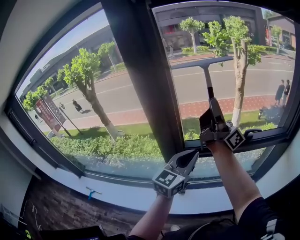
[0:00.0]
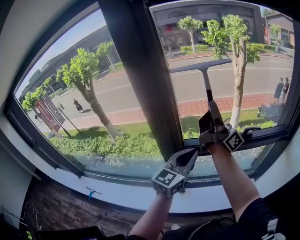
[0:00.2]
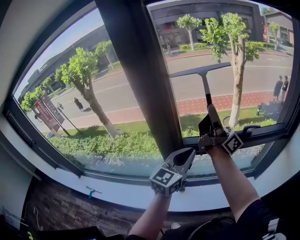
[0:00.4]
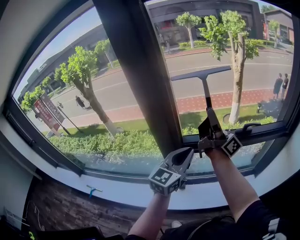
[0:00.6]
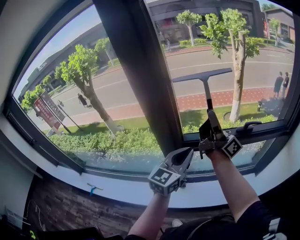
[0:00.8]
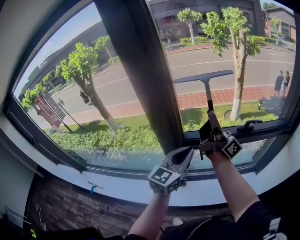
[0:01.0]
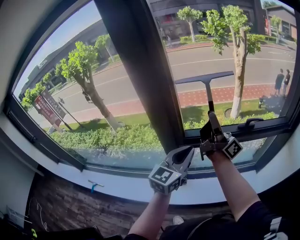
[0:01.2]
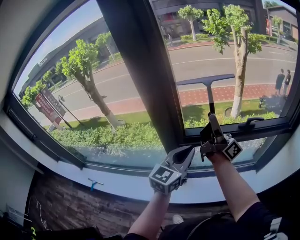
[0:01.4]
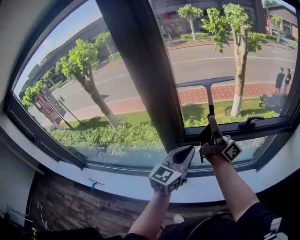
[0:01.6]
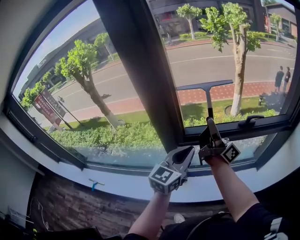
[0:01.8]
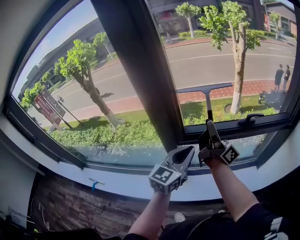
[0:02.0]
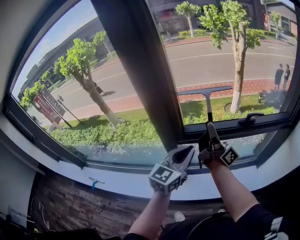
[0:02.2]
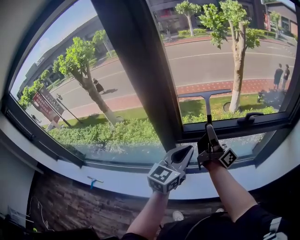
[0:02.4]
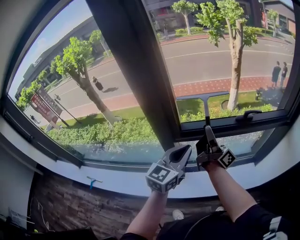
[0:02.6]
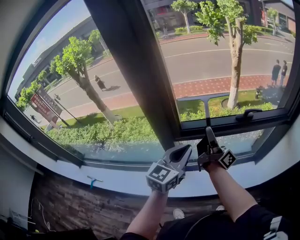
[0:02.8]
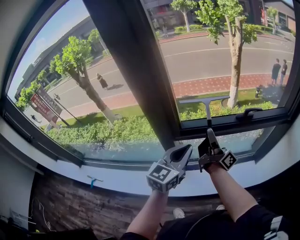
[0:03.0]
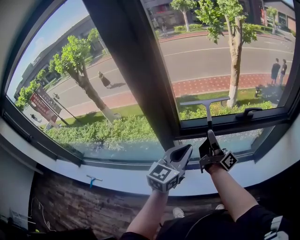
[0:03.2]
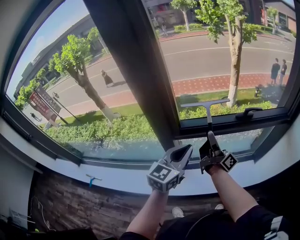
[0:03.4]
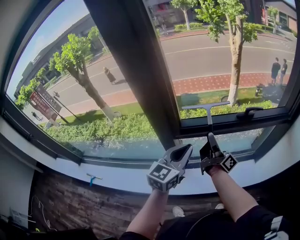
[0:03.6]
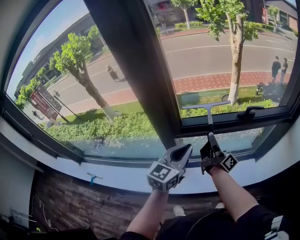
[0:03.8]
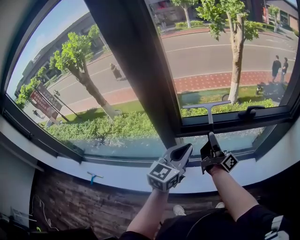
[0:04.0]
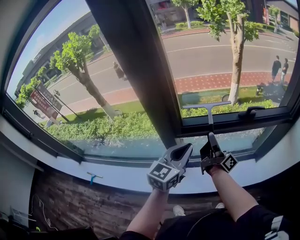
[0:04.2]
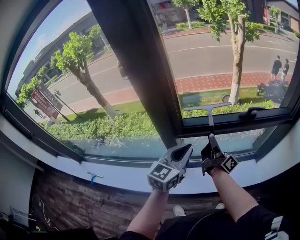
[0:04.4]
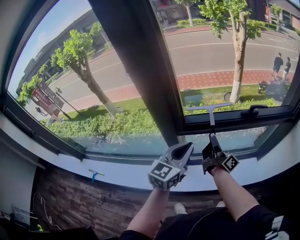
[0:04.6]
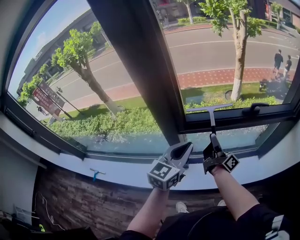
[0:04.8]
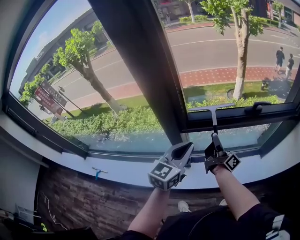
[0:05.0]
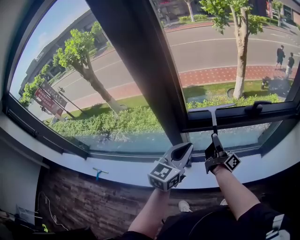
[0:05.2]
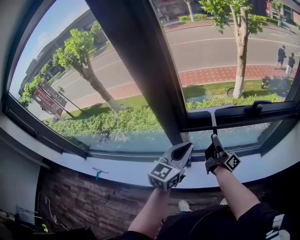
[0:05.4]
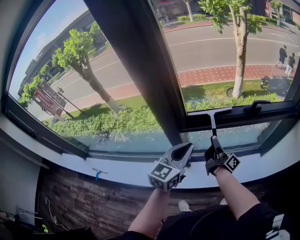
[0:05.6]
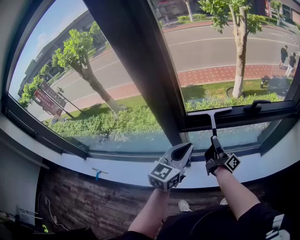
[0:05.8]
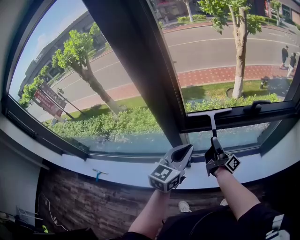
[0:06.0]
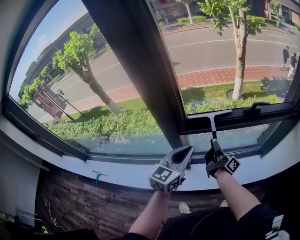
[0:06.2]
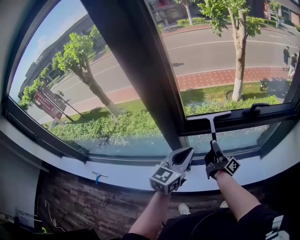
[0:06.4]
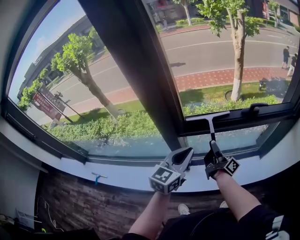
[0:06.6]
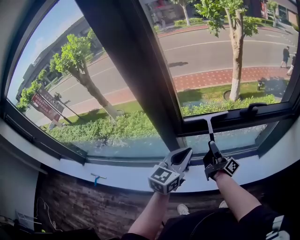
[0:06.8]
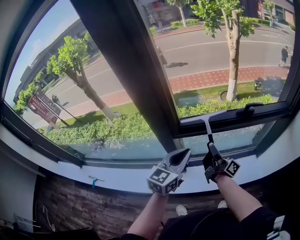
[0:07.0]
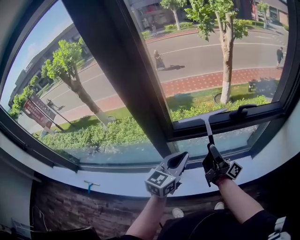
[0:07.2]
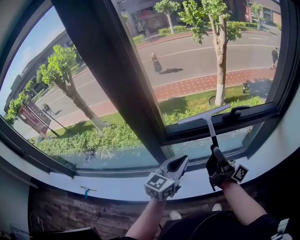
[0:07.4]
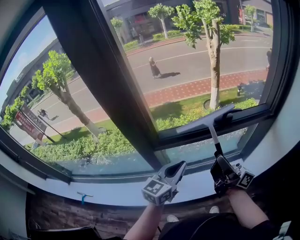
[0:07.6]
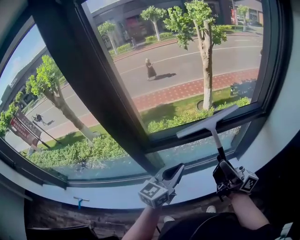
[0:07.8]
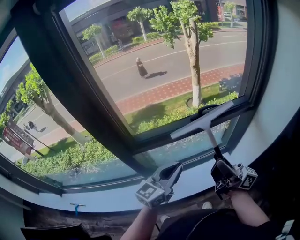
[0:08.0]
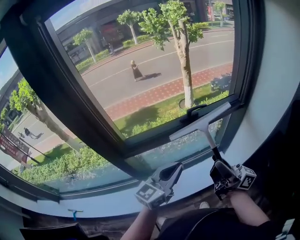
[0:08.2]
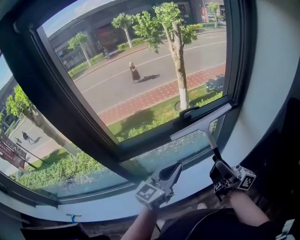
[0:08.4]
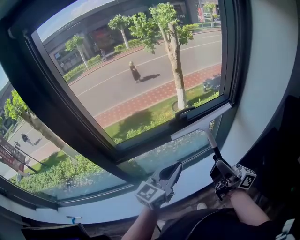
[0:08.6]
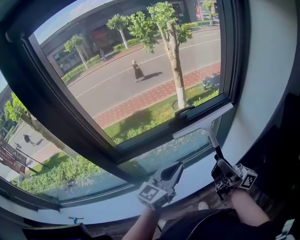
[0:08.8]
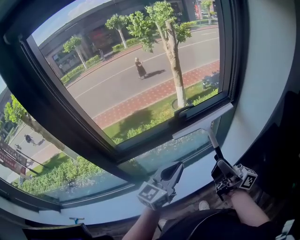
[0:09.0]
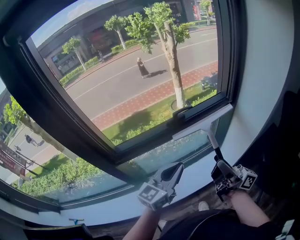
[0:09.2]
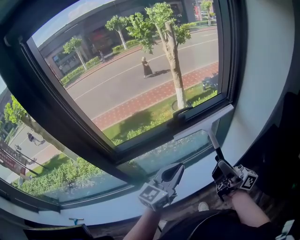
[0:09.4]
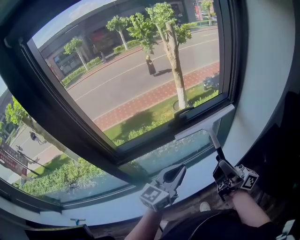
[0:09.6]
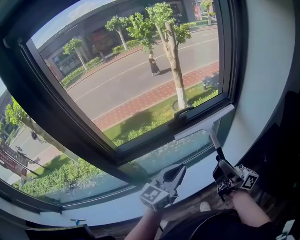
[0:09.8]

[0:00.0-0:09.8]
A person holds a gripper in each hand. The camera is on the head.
0:07.0 to 0:08.4: The left gripper shifts by approximately 20 cm, and swivels about 30 degrees.

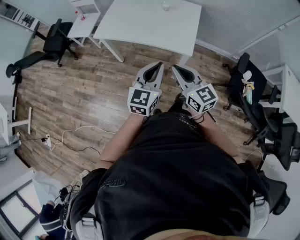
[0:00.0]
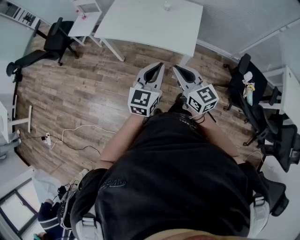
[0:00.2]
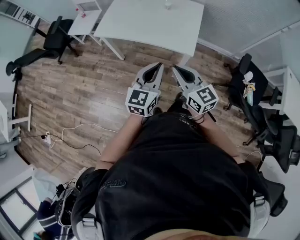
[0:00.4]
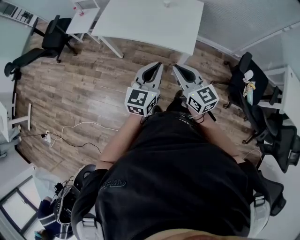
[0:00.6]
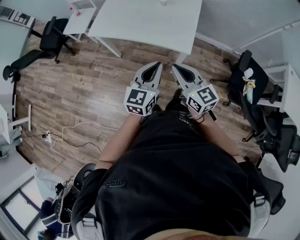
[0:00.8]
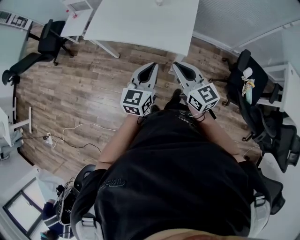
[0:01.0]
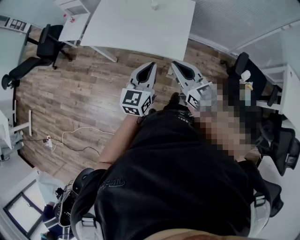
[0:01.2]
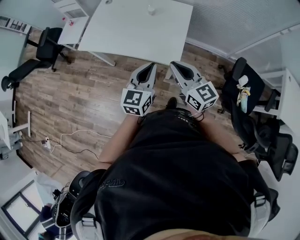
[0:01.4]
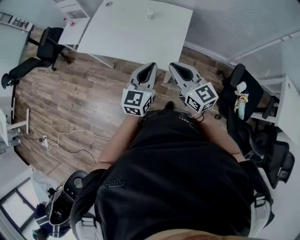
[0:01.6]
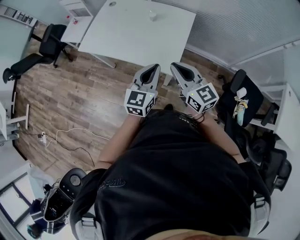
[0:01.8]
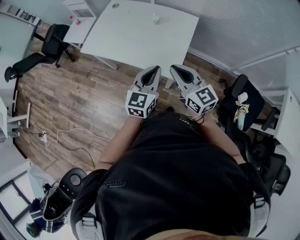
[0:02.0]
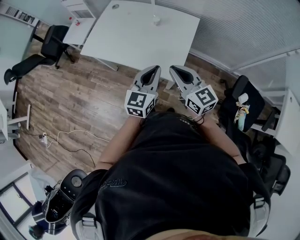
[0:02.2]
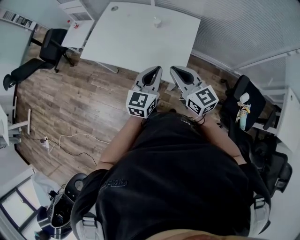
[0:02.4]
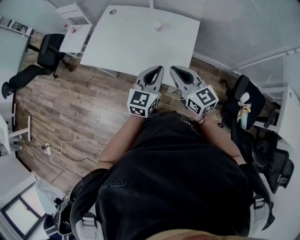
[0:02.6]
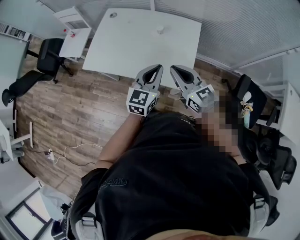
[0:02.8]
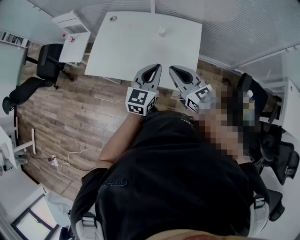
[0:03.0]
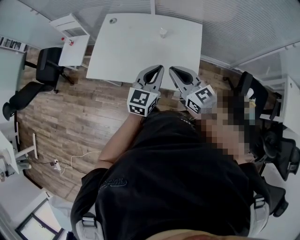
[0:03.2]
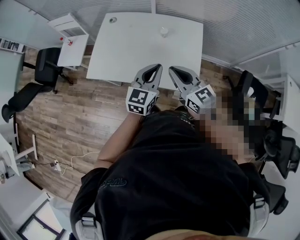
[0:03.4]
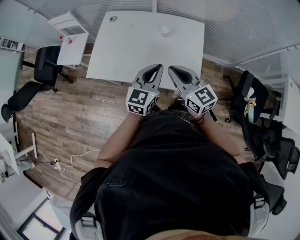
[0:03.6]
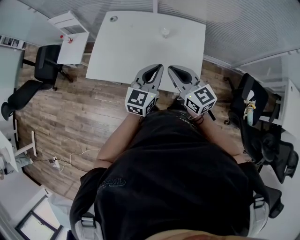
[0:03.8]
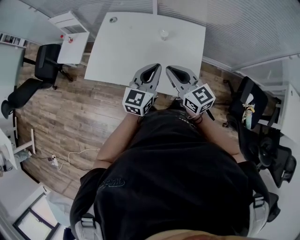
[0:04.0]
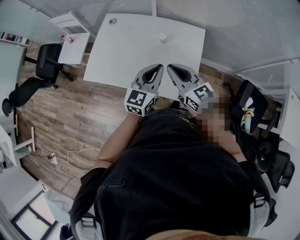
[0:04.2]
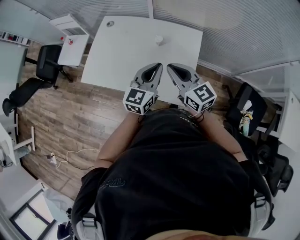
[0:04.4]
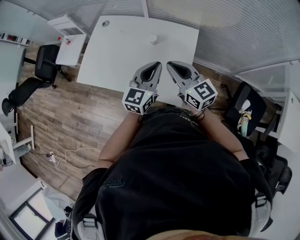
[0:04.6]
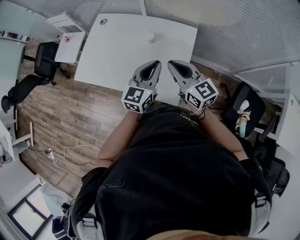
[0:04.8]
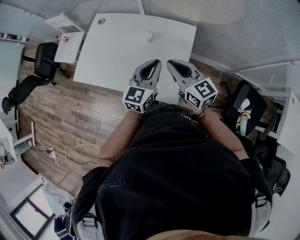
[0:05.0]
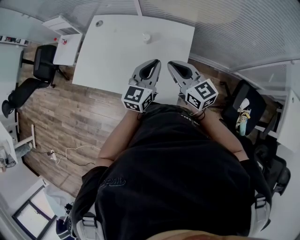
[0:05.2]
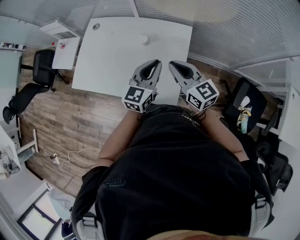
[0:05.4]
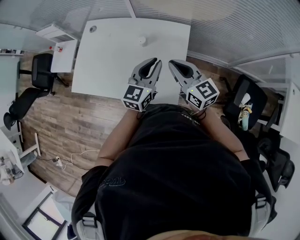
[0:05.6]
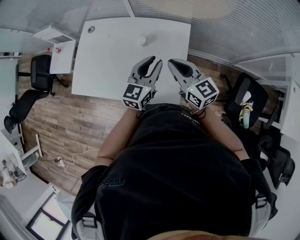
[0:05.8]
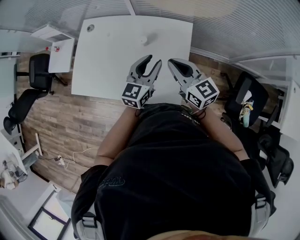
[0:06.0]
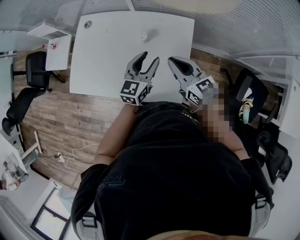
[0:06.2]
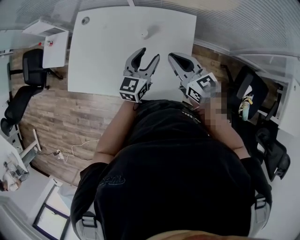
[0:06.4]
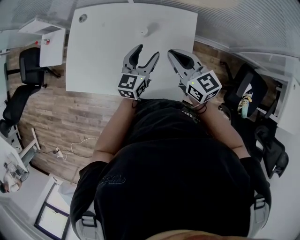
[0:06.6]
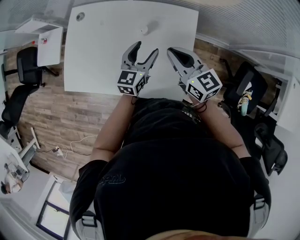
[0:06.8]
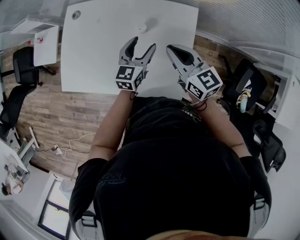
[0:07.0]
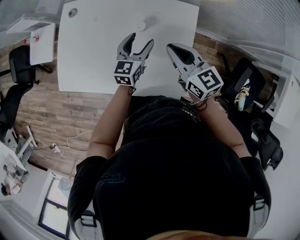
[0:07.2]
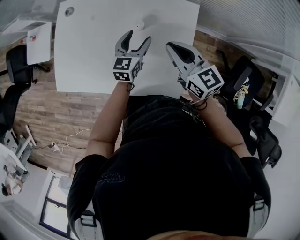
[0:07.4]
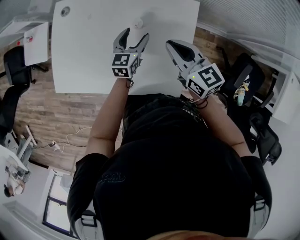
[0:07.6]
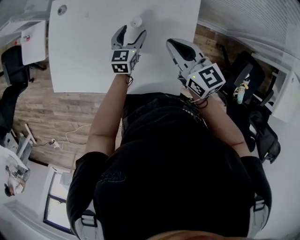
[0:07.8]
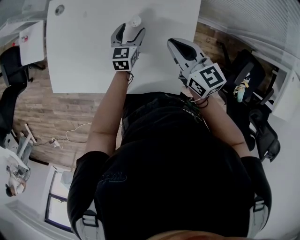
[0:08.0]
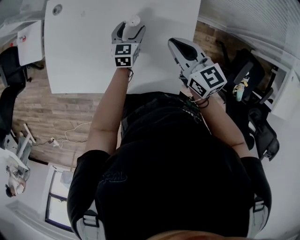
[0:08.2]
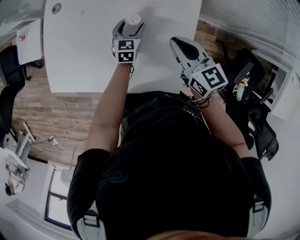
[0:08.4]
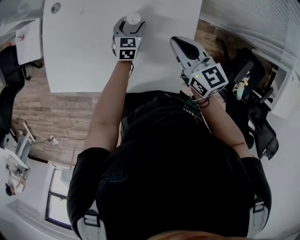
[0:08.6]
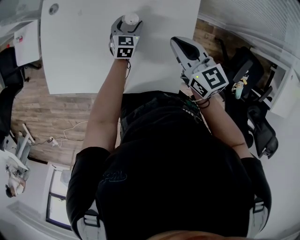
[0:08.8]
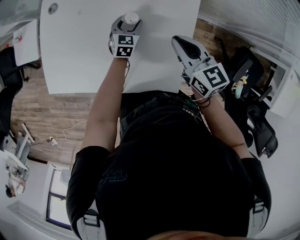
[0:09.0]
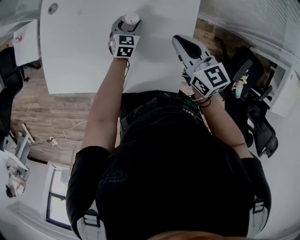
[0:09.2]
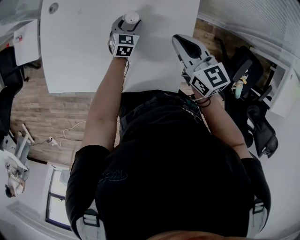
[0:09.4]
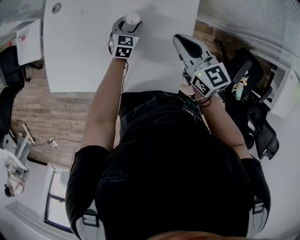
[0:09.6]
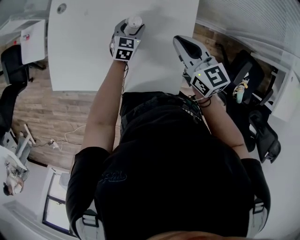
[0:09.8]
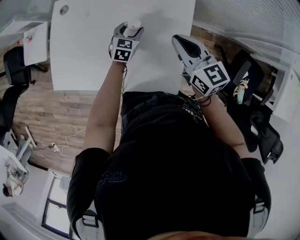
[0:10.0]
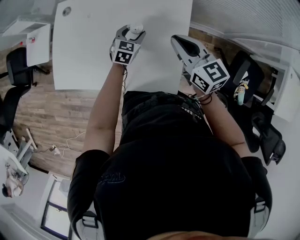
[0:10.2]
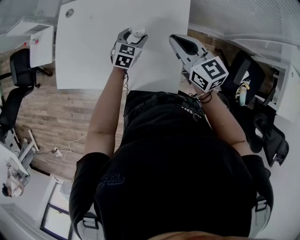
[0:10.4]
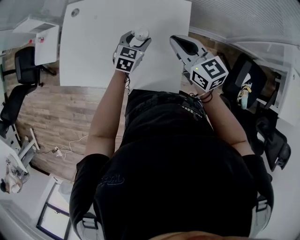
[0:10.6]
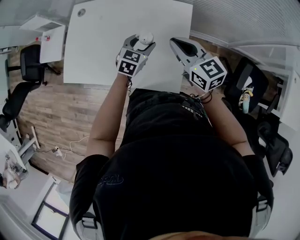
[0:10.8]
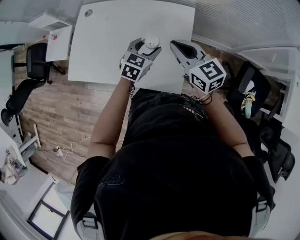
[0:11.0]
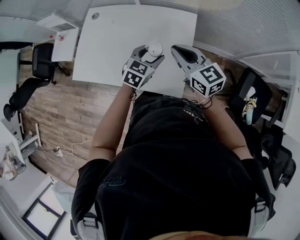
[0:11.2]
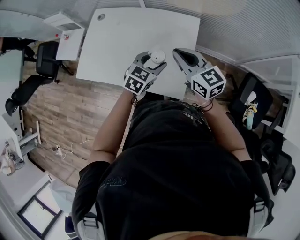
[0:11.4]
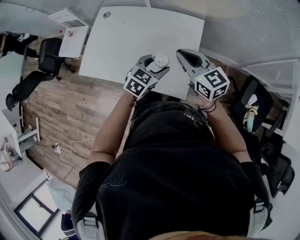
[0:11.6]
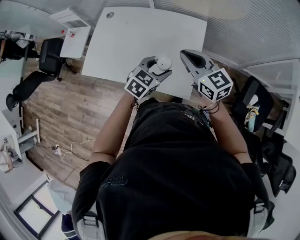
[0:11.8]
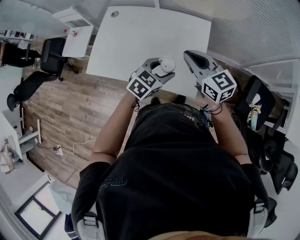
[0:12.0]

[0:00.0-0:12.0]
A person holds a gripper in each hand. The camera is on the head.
0:00.0 to 0:01.6: The right gripper heads to the right and forward, covering roughly 20 cm. Meanwhile the left gripper shifts approximately 20 cm forward and to the right.
0:01.6 to 0:03.0: The two grippers go some 15 cm forward and to the left.
0:03.0 to 0:04.4: The grippers both shift forward by some 10 cm.
0:04.4 to 0:06.0: The left gripper travels forward, downward and to the right by about 10 cm, and opens. The right gripper heads to the right and forward, covering roughly 10 cm.
0:06.0 to 0:07.6: The right gripper heads forward and downward, covering some 10 cm; the left gripper shifts roughly 20 cm downward and forward, and opens up.
0:07.6 to 0:09.0: The left gripper shifts about 10 cm downward.
0:09.0 to 0:10.4: The grippers both shift upward and backward by about 10 cm.
0:10.4 to 0:12.0: The right gripper goes about 15 cm backward, upward and to the left. The left gripper travels backward and upward by some 25 cm.

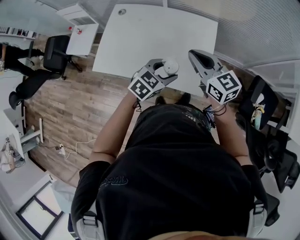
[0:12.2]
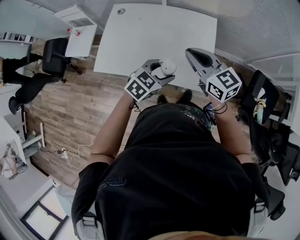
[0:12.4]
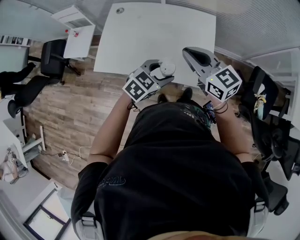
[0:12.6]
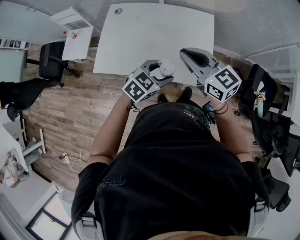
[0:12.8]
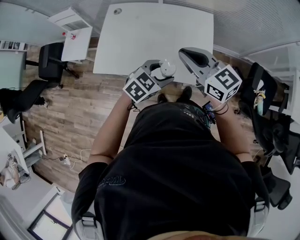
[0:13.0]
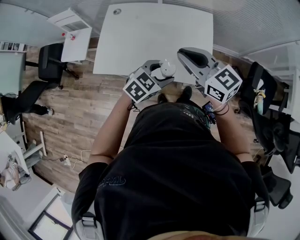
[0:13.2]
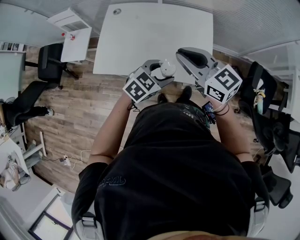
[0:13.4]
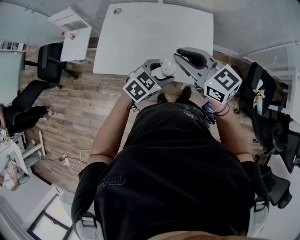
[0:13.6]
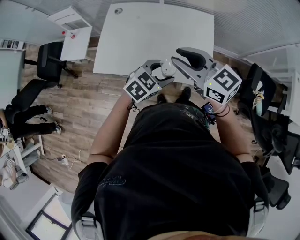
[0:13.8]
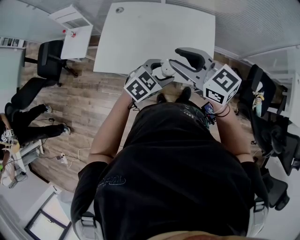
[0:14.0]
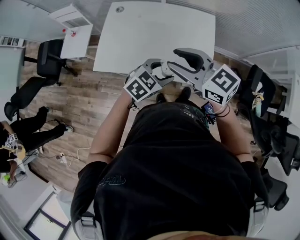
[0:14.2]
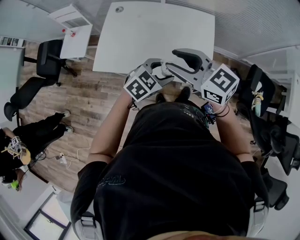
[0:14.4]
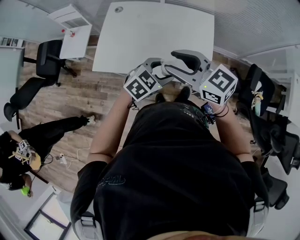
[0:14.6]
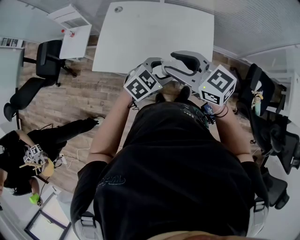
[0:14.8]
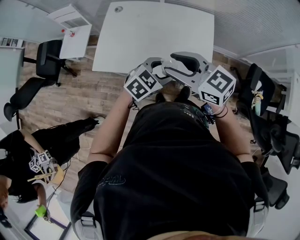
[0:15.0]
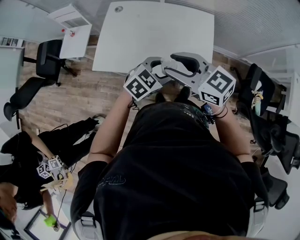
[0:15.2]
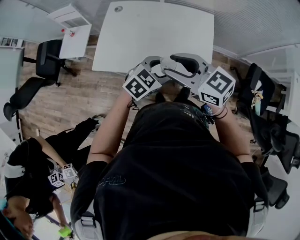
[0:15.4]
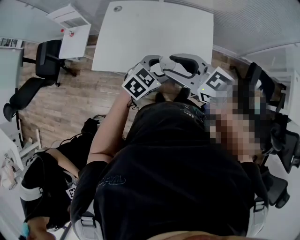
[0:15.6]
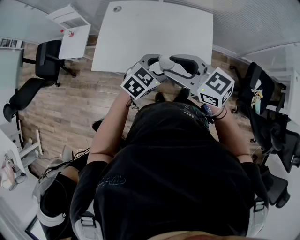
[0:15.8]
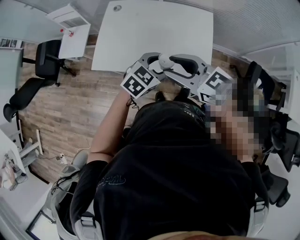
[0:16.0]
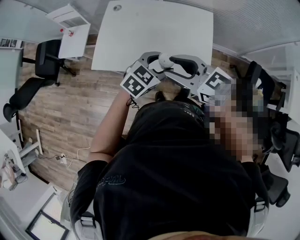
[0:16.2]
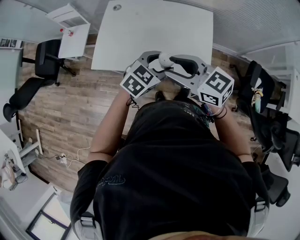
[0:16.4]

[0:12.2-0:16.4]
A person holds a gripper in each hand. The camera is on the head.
0:12.2 to 0:13.6: The right gripper is displaced to the left and backward by about 10 cm, while the left gripper heads to the left and backward, covering roughly 10 cm.
0:13.6 to 0:15.0: The right gripper opens.
0:15.0 to 0:16.4: There are only small adjustments of the grippers.
